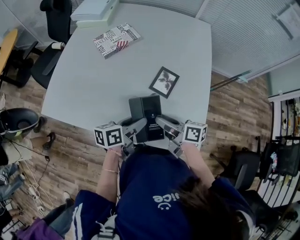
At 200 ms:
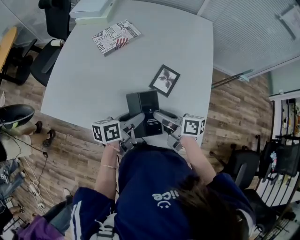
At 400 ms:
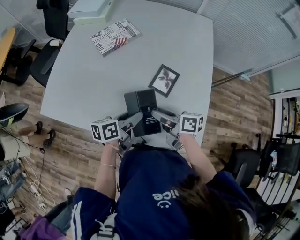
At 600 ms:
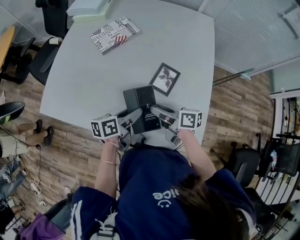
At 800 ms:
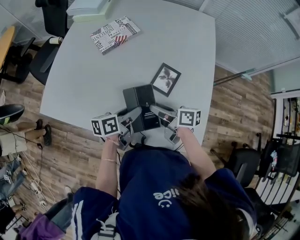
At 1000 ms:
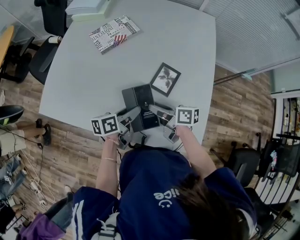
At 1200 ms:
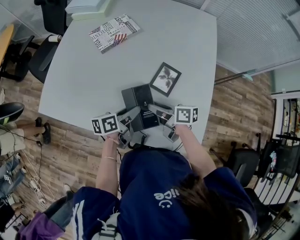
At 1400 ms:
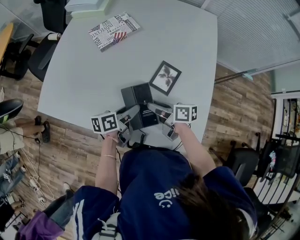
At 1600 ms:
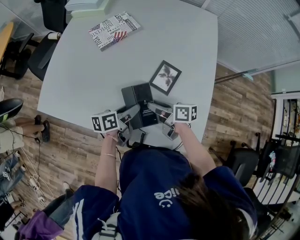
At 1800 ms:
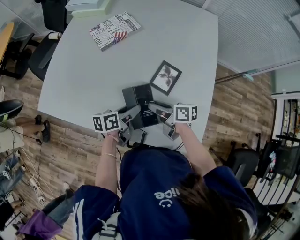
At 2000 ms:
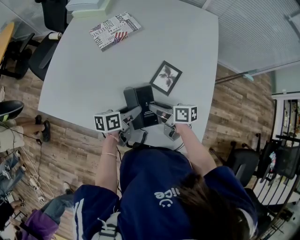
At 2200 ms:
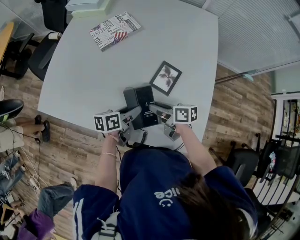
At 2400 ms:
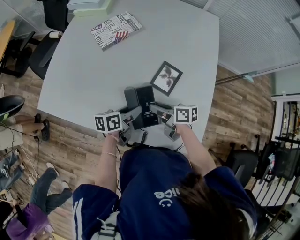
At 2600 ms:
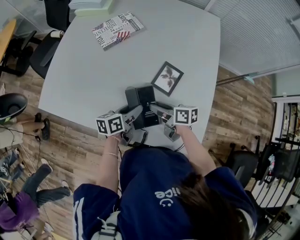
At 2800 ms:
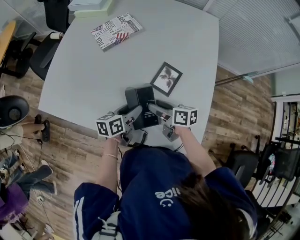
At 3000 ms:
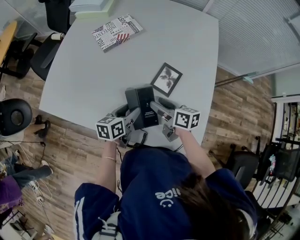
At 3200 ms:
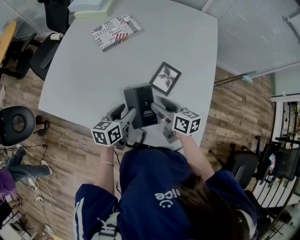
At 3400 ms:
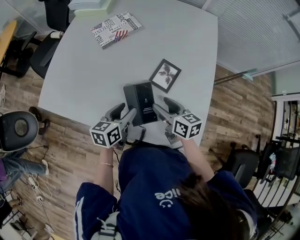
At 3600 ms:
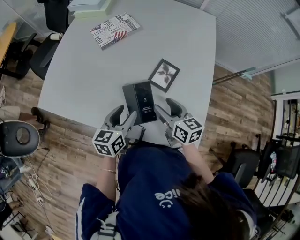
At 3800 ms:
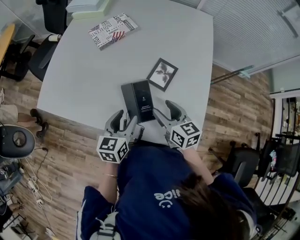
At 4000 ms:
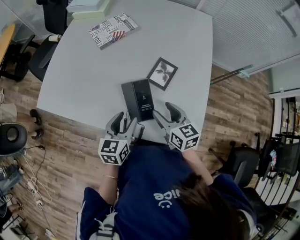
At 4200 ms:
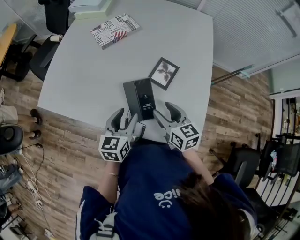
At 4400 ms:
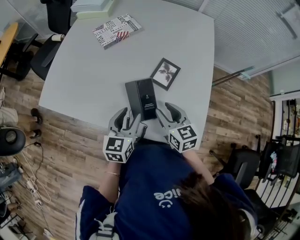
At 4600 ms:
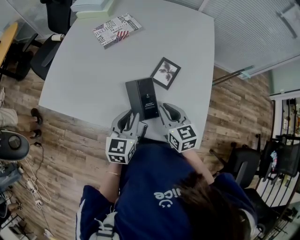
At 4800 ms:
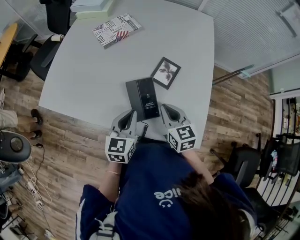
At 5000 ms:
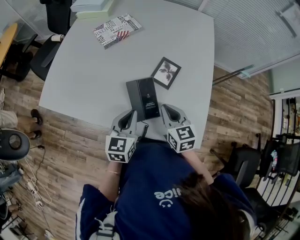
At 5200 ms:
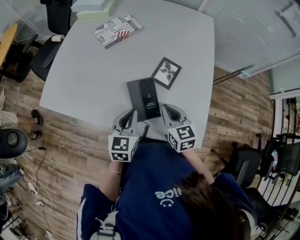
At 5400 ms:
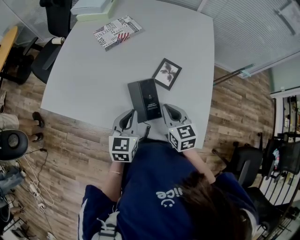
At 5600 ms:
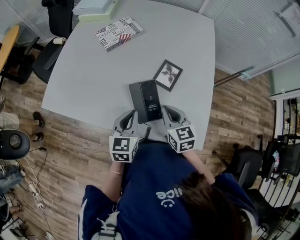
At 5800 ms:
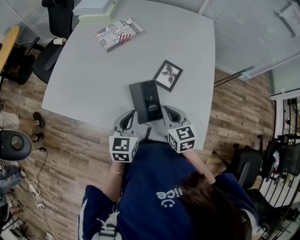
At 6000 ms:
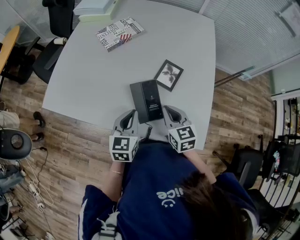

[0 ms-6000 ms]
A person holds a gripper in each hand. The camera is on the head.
0 ms to 1600 ms: The grippers both shift downward and forward by about 10 cm.
1600 ms to 3000 ms: The right gripper opens its fingers.
3000 ms to 4400 ms: The right gripper moves backward, about 5 cm, and rotates roughly 40 degrees, while the left gripper travels upward and backward by roughly 10 cm, and changes its angle by roughly 30 degrees.
4400 ms to 6000 ms: The left gripper closes, while the right gripper closes up.

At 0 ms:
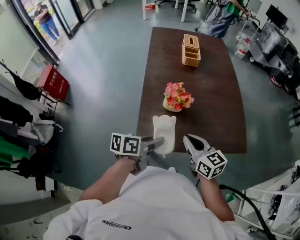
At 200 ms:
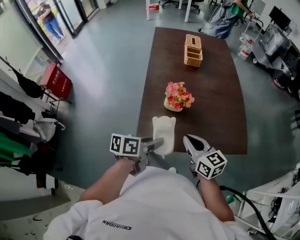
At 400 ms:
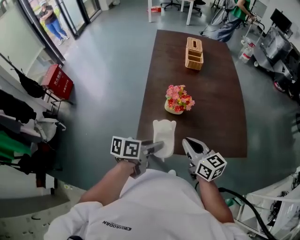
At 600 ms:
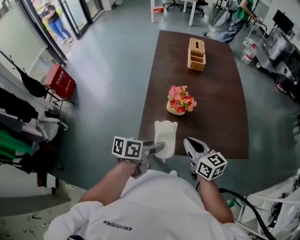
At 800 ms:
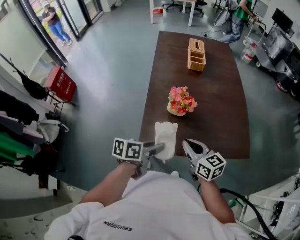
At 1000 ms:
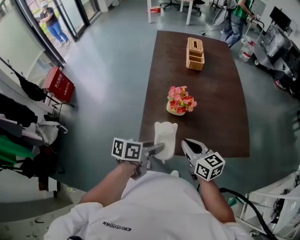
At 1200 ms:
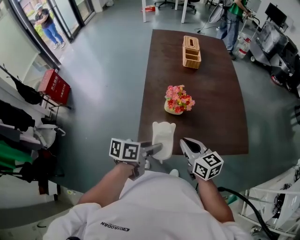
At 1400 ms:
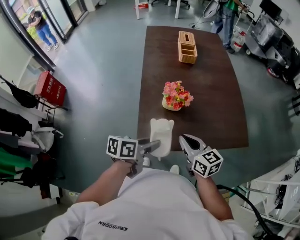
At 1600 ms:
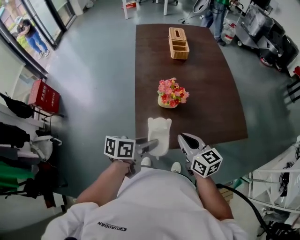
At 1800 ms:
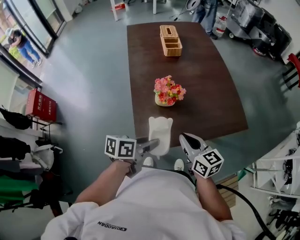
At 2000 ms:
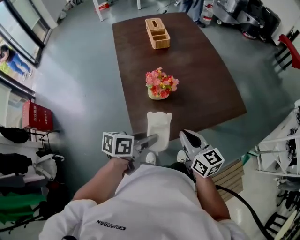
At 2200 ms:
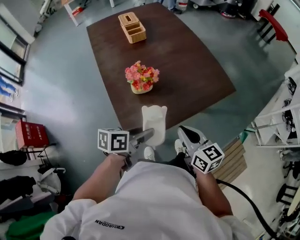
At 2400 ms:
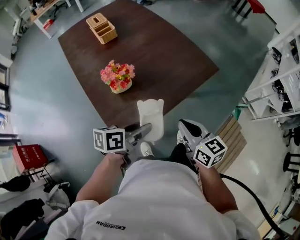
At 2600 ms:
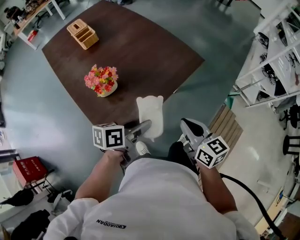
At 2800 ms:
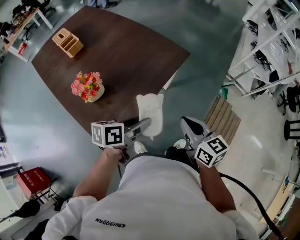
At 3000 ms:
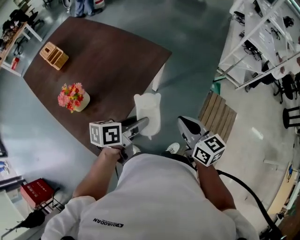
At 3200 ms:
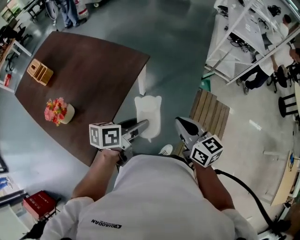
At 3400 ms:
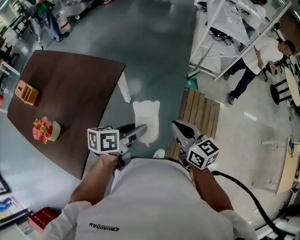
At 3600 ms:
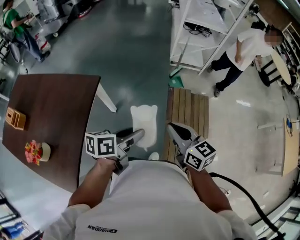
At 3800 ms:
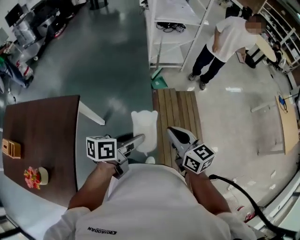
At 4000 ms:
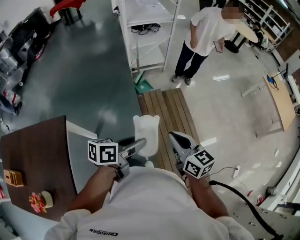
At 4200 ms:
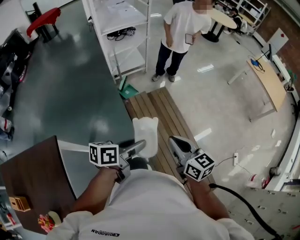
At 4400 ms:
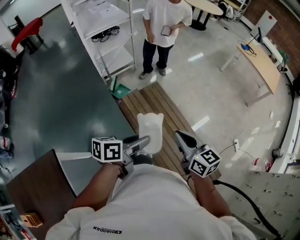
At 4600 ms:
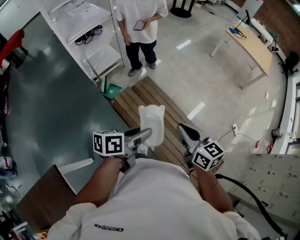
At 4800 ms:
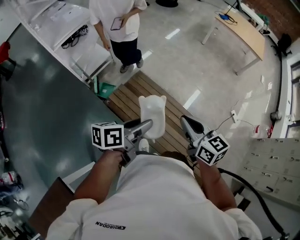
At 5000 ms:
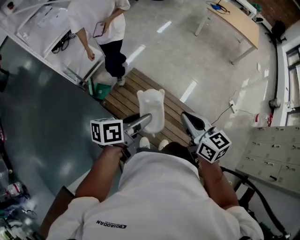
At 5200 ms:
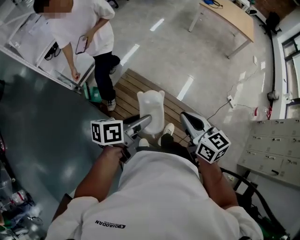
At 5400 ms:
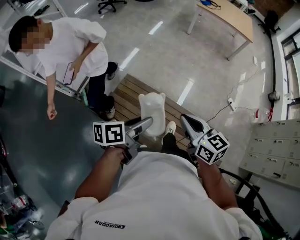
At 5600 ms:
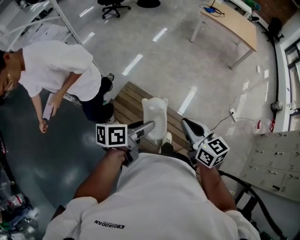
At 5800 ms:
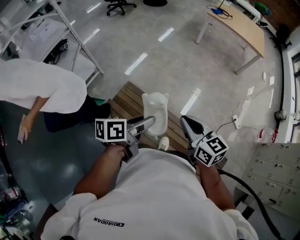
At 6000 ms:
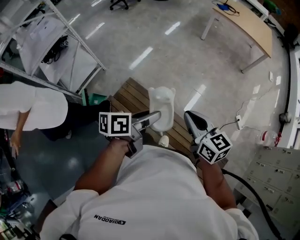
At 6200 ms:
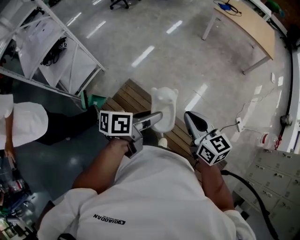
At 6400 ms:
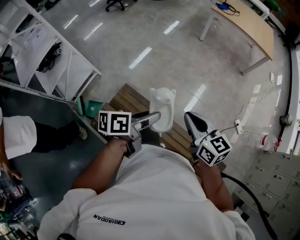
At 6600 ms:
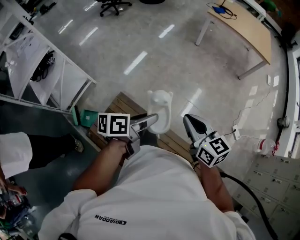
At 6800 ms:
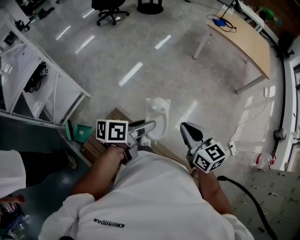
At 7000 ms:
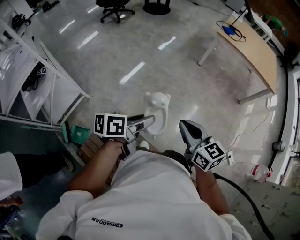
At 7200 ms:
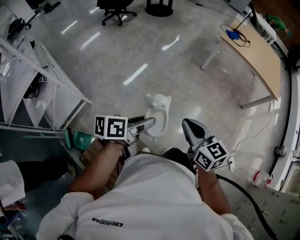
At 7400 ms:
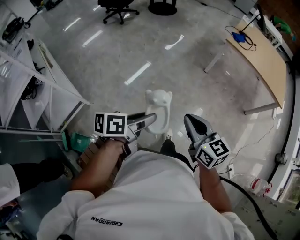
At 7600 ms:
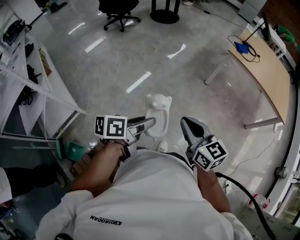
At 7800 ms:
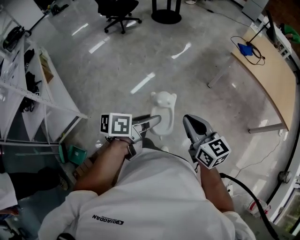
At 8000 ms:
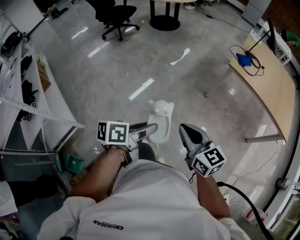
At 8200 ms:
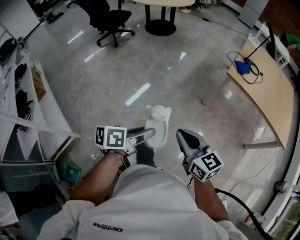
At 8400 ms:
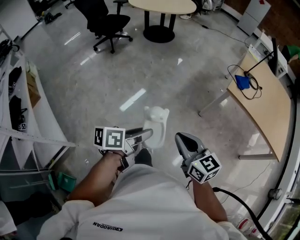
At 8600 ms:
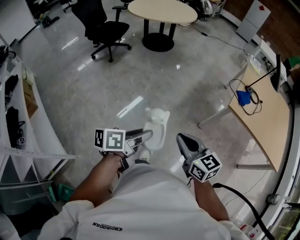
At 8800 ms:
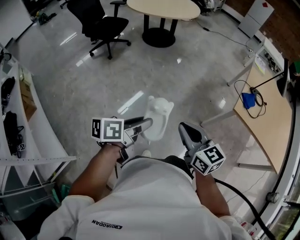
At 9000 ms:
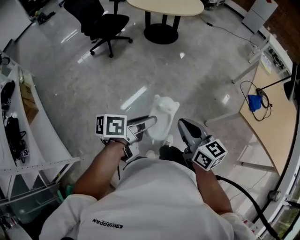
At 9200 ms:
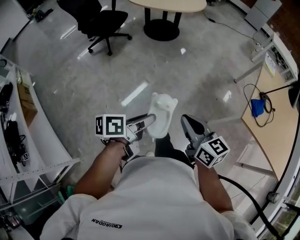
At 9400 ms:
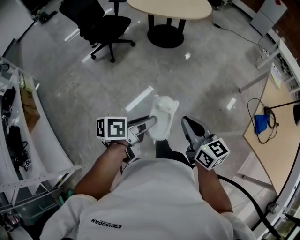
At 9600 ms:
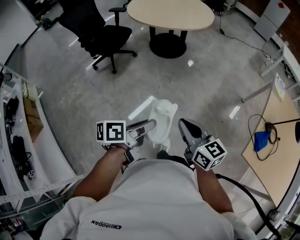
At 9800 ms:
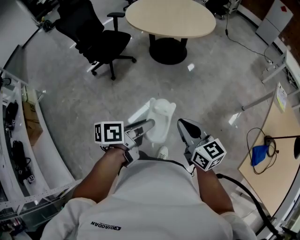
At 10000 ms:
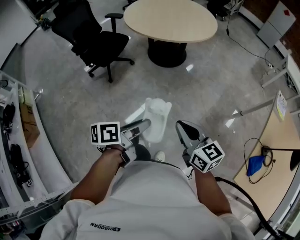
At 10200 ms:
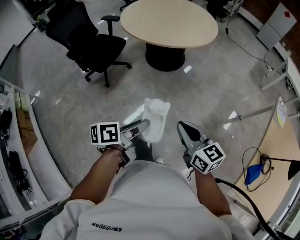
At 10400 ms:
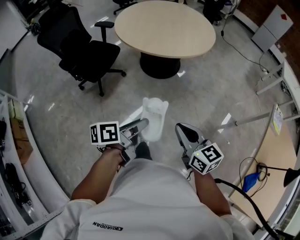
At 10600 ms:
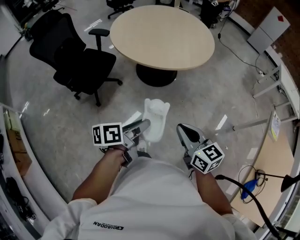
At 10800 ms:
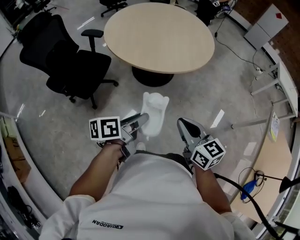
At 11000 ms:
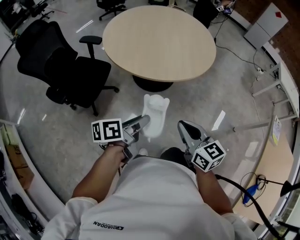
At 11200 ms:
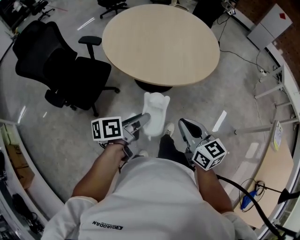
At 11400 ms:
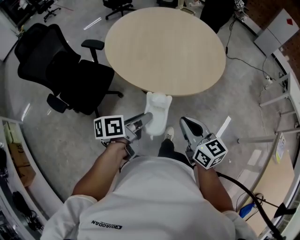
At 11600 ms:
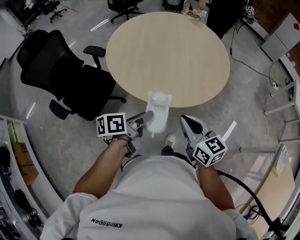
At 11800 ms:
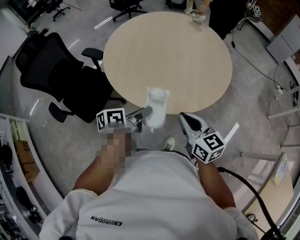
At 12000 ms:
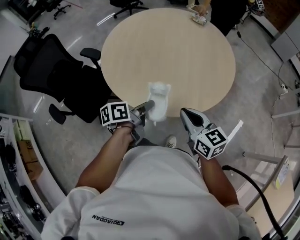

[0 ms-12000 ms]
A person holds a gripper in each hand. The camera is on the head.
0 ms to 1600 ms: The grippers stay close to where they were, moving slightly.
1600 ms to 3000 ms: The right gripper shifts by about 30 cm, and rotates approximately 50 degrees. Meanwhile the left gripper shifts by some 20 cm, and rotates approximately 50 degrees.
3000 ms to 4400 ms: The pair of grippers is taken some 40 cm. The right gripper changes its angle by roughly 60 degrees. The left gripper swivels about 70 degrees.
4400 ms to 6000 ms: The two grippers go approximately 30 cm forward and to the right.
6000 ms to 7600 ms: The pair of grippers is taken forward, approximately 50 cm.
7600 ms to 9000 ms: Both grippers are carried forward, about 50 cm.
9000 ms to 10400 ms: The pair of grippers is taken forward, approximately 50 cm.
10400 ms to 12000 ms: The two grippers travel together, forward, approximately 40 cm.

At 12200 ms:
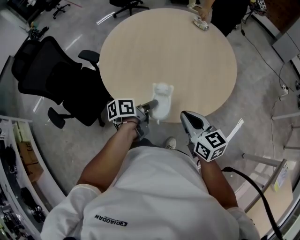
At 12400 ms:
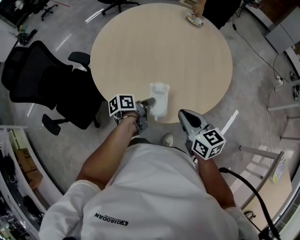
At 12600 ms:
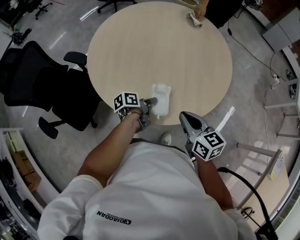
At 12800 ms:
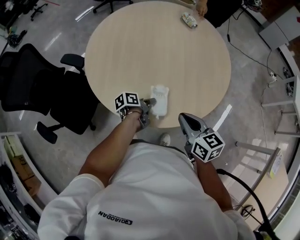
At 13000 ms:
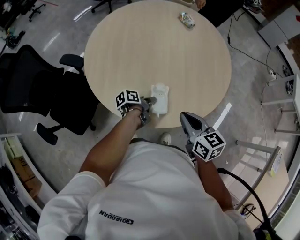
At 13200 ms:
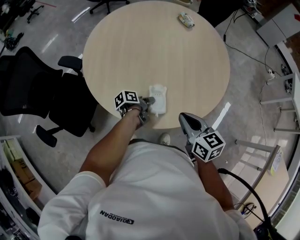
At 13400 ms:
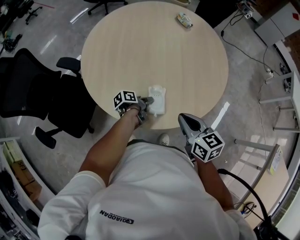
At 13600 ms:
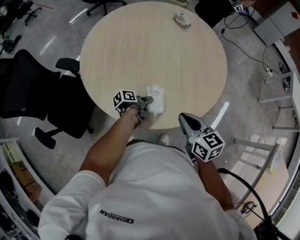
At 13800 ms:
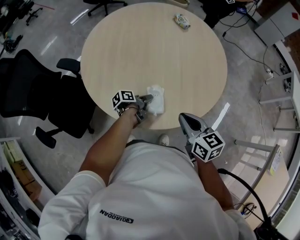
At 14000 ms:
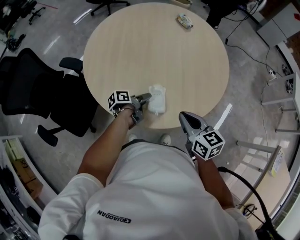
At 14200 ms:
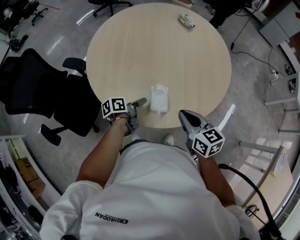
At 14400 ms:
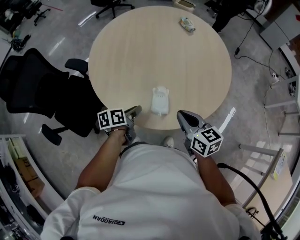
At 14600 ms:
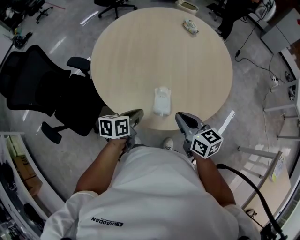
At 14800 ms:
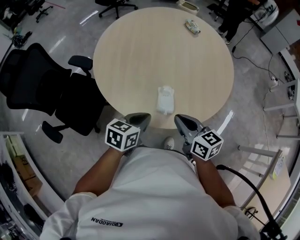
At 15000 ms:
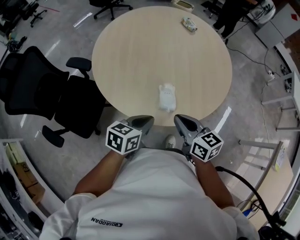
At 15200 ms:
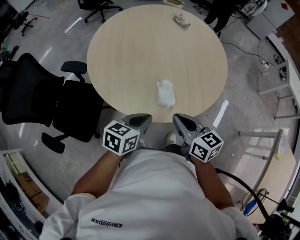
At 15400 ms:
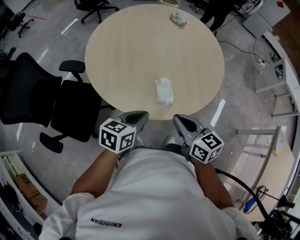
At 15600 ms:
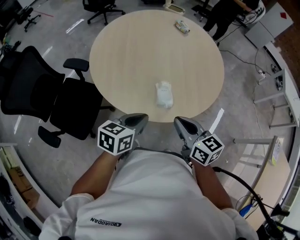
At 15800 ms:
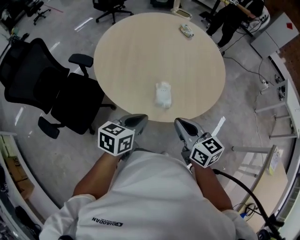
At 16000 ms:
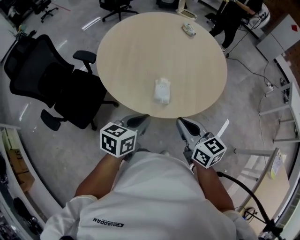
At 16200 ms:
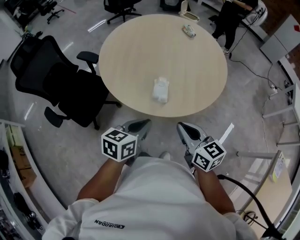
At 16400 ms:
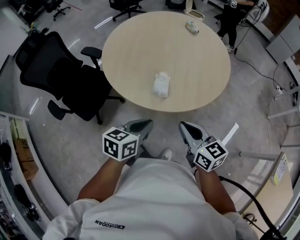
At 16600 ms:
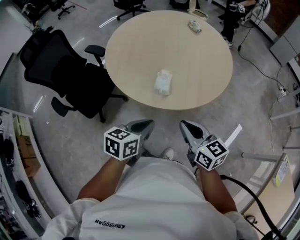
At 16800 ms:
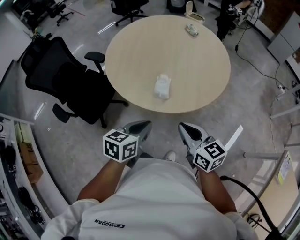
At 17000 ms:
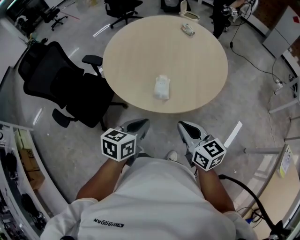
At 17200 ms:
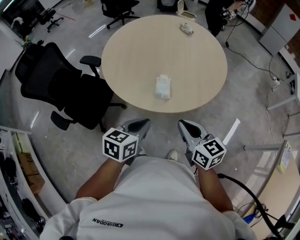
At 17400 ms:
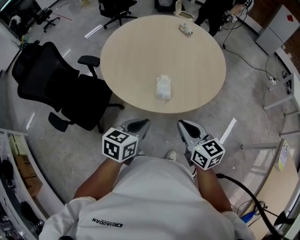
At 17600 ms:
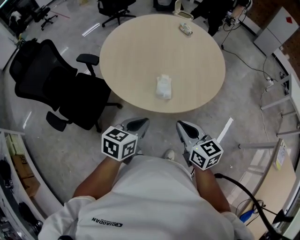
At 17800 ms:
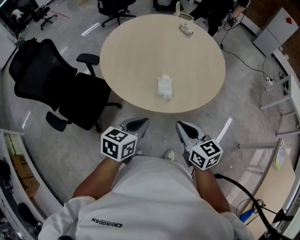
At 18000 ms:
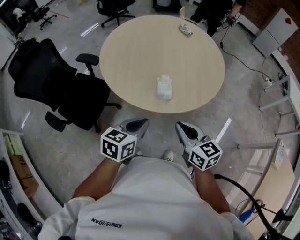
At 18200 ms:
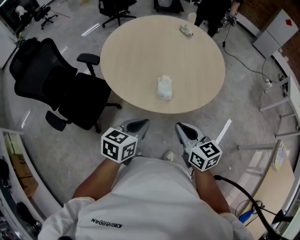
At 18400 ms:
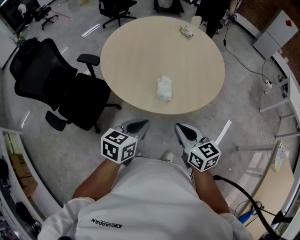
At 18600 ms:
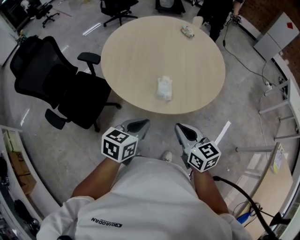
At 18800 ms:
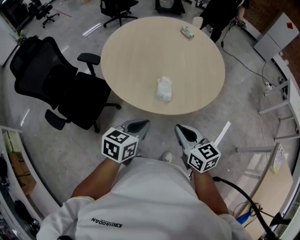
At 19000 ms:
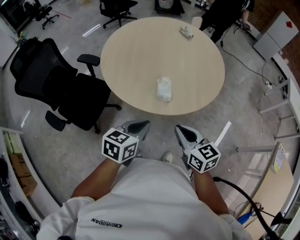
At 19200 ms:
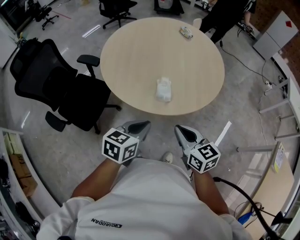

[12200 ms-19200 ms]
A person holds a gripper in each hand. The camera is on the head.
12200 ms to 13600 ms: The left gripper goes roughly 15 cm downward and forward, and rotates roughly 20 degrees.
13600 ms to 15000 ms: The right gripper is displaced to the left by some 5 cm. The left gripper moves upward and backward, some 20 cm, twists about 60 degrees clockwise, seen from behind, and closes up.
15000 ms to 16400 ms: The grippers both shift backward and to the right by some 10 cm.
16400 ms to 17800 ms: Both grippers move to the left, roughly 5 cm.
17800 ms to 19200 ms: Both grippers stay about where they are.
